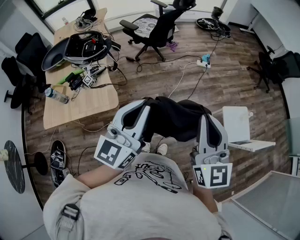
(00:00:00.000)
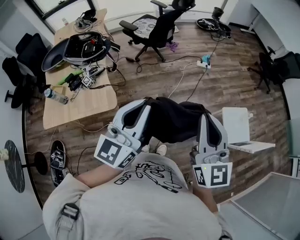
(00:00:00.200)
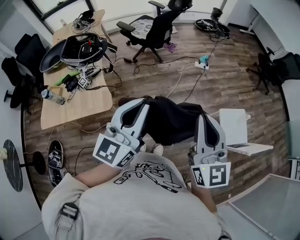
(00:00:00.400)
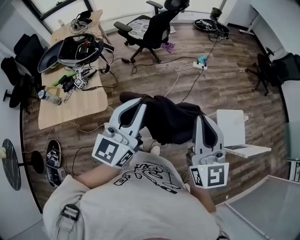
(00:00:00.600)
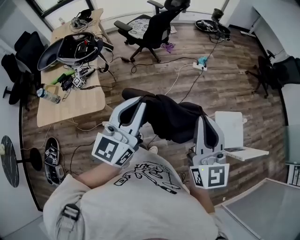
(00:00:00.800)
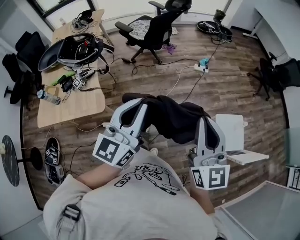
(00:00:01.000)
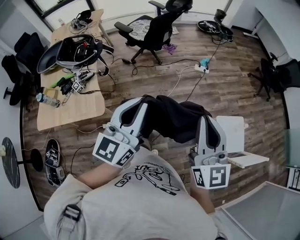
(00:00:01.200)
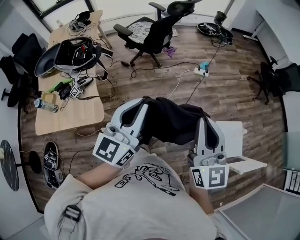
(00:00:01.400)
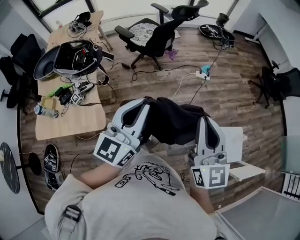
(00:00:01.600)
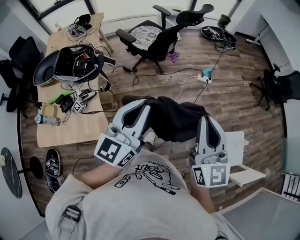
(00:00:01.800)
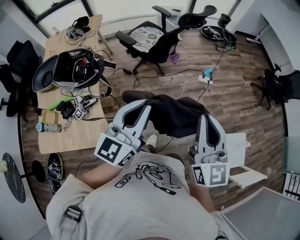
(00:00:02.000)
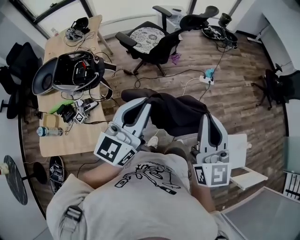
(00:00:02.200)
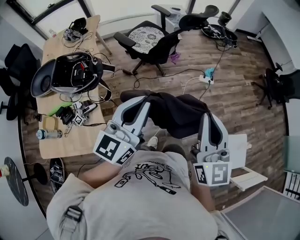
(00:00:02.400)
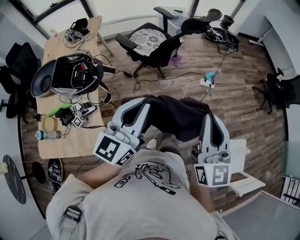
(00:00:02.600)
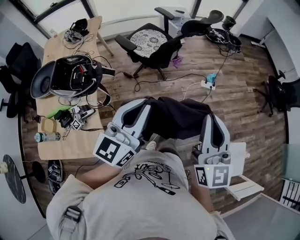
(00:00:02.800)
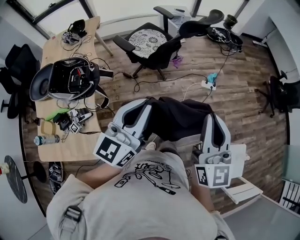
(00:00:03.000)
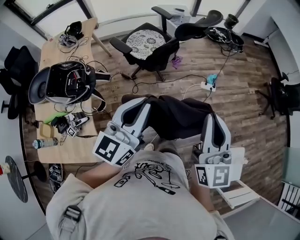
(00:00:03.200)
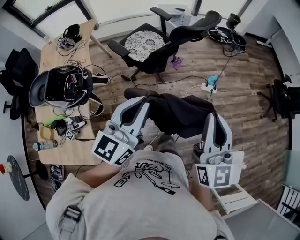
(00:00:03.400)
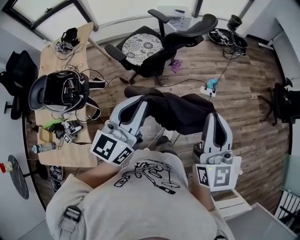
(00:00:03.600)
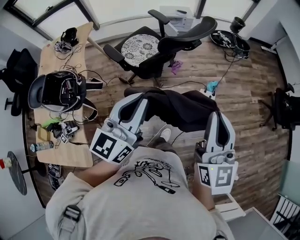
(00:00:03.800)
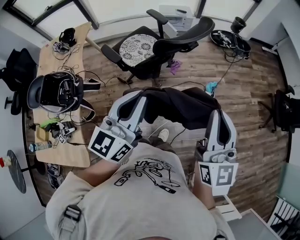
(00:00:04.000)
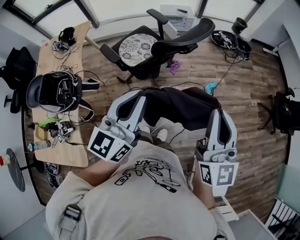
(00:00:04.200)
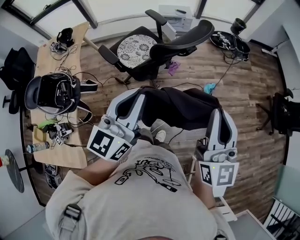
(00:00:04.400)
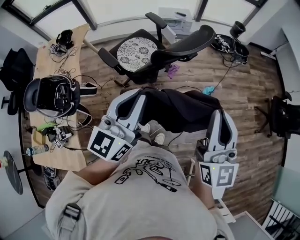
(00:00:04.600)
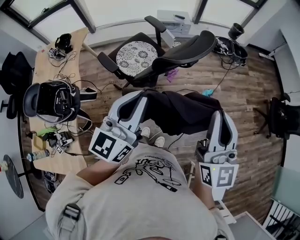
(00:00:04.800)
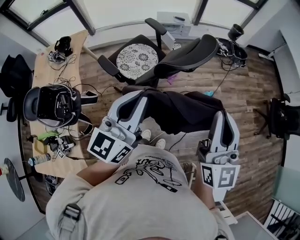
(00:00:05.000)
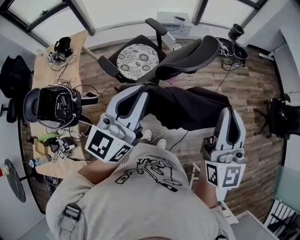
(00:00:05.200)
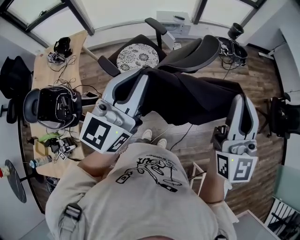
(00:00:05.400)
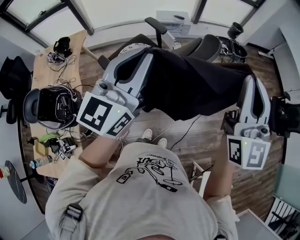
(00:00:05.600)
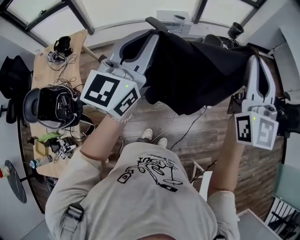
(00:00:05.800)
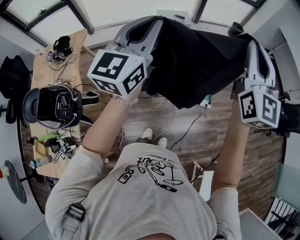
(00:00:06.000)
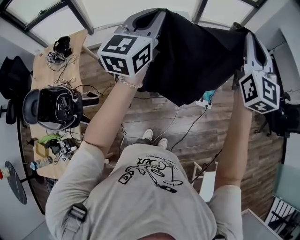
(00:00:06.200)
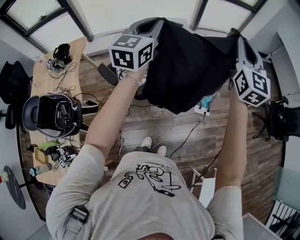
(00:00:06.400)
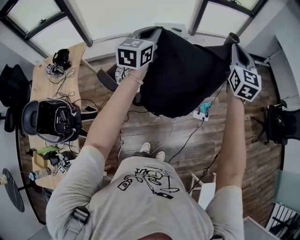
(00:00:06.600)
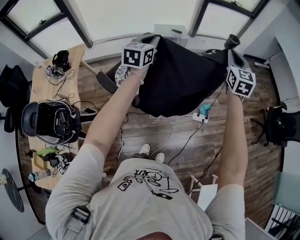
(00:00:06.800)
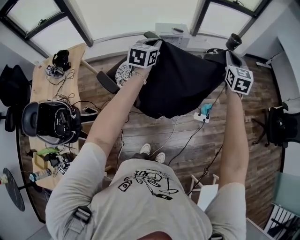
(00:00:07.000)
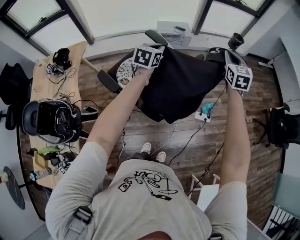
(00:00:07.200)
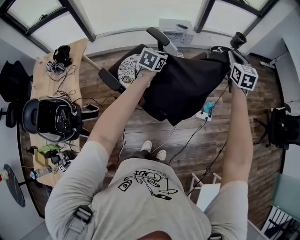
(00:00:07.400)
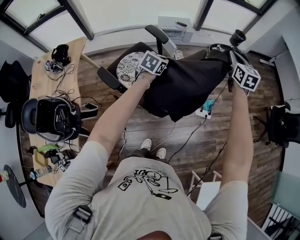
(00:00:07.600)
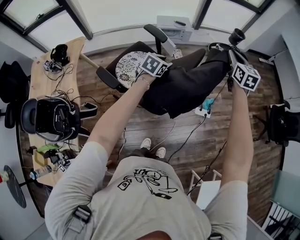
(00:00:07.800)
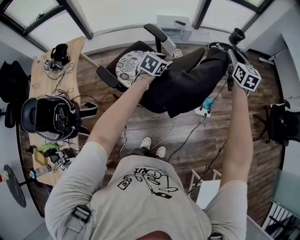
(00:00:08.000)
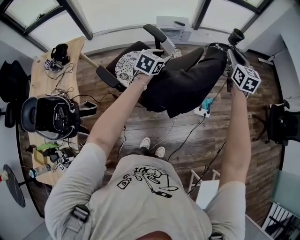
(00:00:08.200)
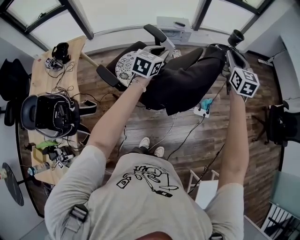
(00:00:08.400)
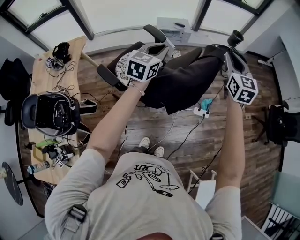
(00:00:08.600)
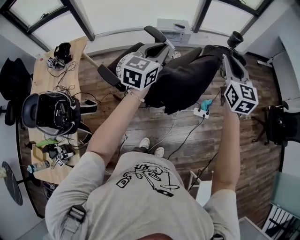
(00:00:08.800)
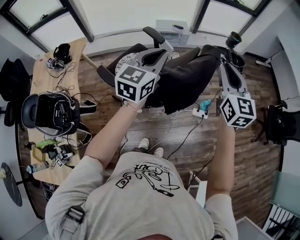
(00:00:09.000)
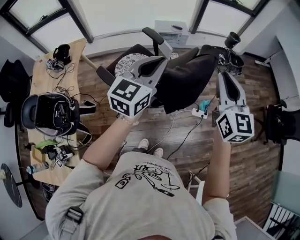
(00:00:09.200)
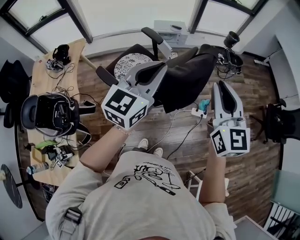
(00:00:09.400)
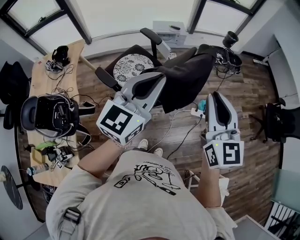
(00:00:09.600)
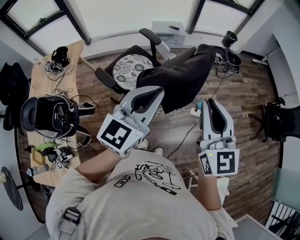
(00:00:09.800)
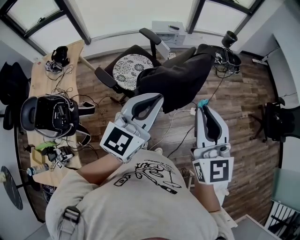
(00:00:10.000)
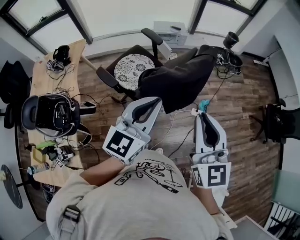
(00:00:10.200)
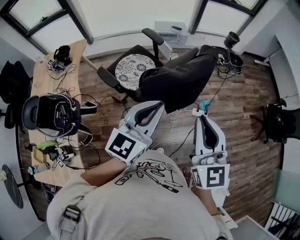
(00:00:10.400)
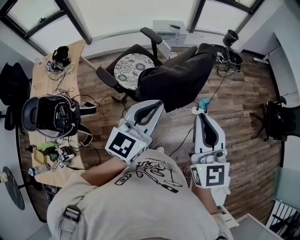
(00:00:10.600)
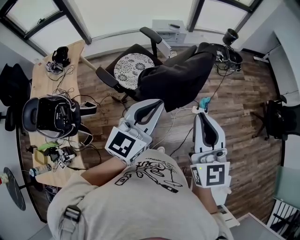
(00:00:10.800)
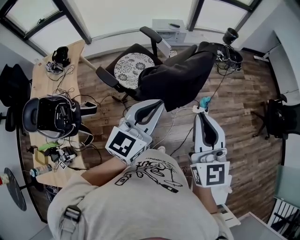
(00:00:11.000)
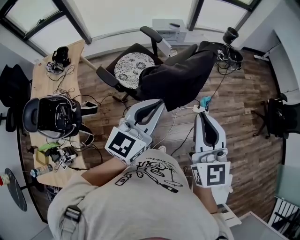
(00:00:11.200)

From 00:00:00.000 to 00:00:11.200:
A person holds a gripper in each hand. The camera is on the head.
From 00:00:00.000 to 00:00:01.600: Both grippers move forward, roughly 20 cm.
From 00:00:01.600 to 00:00:03.200: Both grippers move forward, approximately 30 cm.
From 00:00:03.200 to 00:00:04.800: Both grippers move forward, some 25 cm.
From 00:00:04.800 to 00:00:06.400: The two grippers go about 30 cm forward.
From 00:00:06.400 to 00:00:08.000: The right gripper shifts approximately 25 cm downward and forward, and swivels some 30 degrees; the left gripper moves downward, about 30 cm, points its fingers about 40 degrees further downward, and opens up.
From 00:00:08.000 to 00:00:09.600: The left gripper goes about 40 cm upward and backward, tilts its fingers roughly 40 degrees upward, and closes its fingers; the right gripper is displaced backward by approximately 35 cm.
From 00:00:09.600 to 00:00:11.200: The left gripper moves backward and downward, approximately 10 cm. The right gripper goes roughly 5 cm backward.

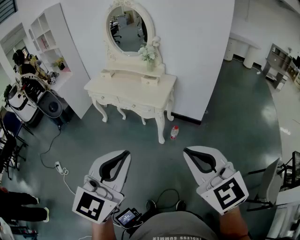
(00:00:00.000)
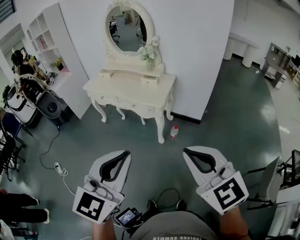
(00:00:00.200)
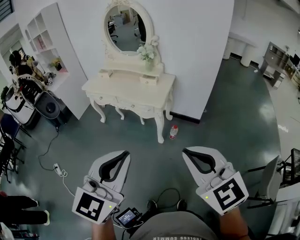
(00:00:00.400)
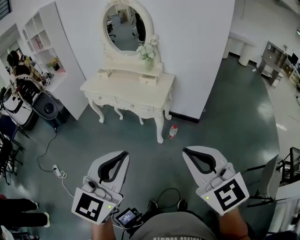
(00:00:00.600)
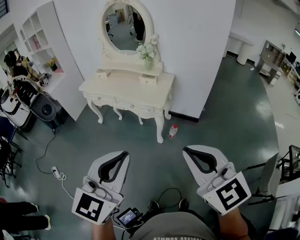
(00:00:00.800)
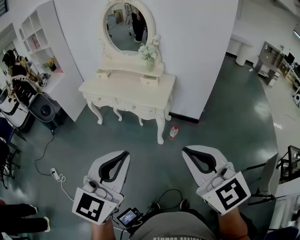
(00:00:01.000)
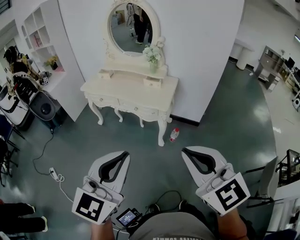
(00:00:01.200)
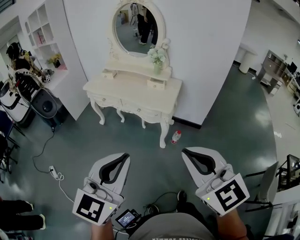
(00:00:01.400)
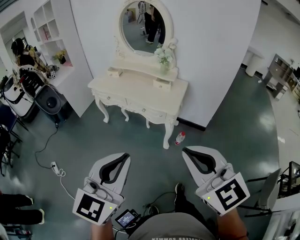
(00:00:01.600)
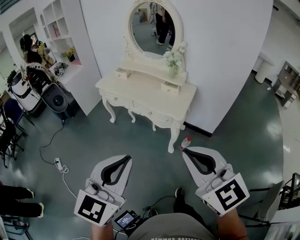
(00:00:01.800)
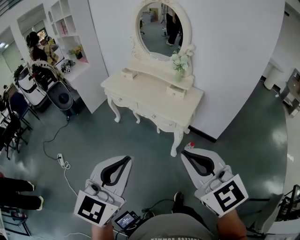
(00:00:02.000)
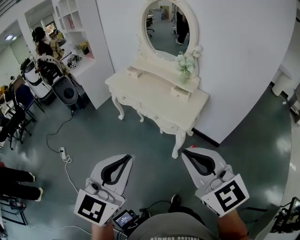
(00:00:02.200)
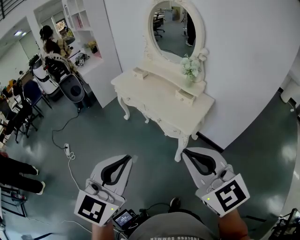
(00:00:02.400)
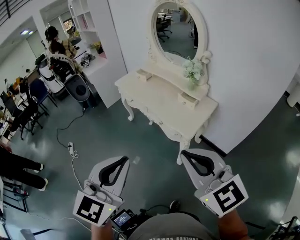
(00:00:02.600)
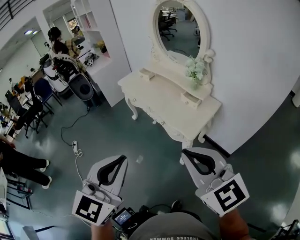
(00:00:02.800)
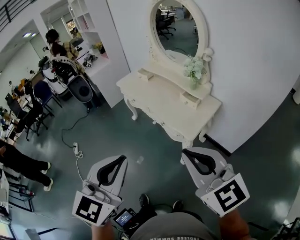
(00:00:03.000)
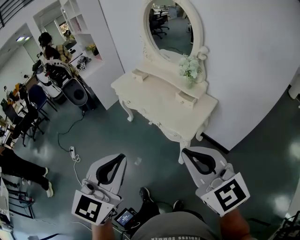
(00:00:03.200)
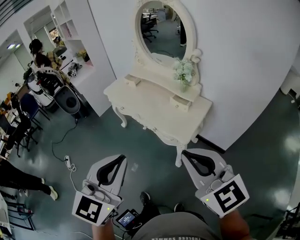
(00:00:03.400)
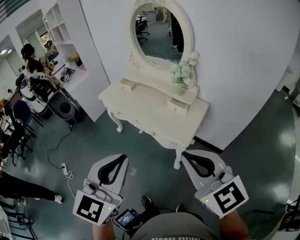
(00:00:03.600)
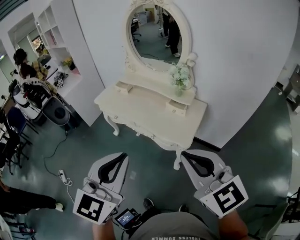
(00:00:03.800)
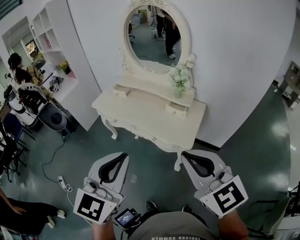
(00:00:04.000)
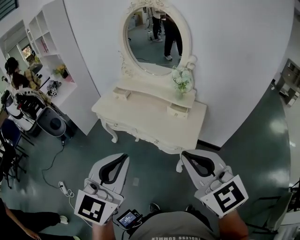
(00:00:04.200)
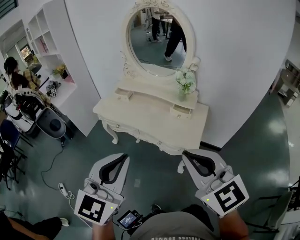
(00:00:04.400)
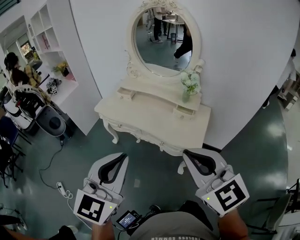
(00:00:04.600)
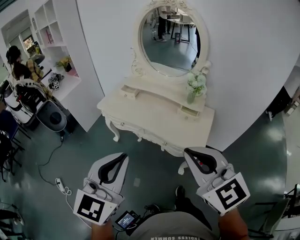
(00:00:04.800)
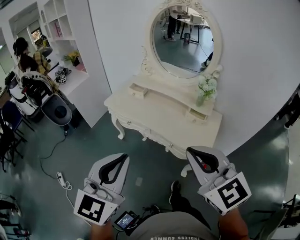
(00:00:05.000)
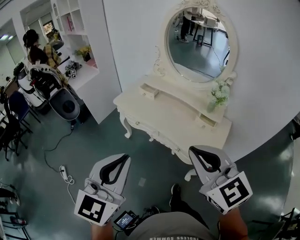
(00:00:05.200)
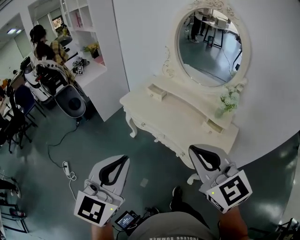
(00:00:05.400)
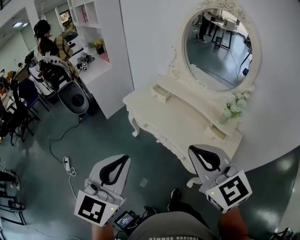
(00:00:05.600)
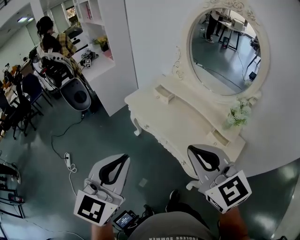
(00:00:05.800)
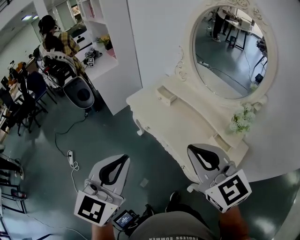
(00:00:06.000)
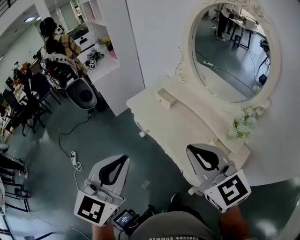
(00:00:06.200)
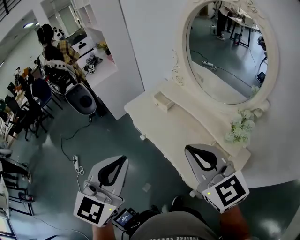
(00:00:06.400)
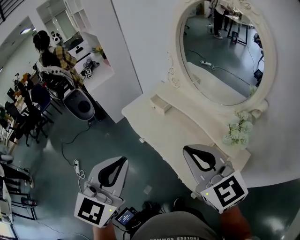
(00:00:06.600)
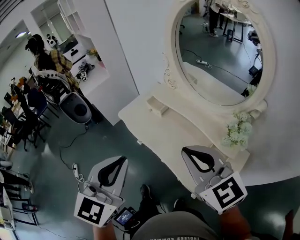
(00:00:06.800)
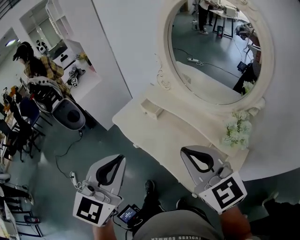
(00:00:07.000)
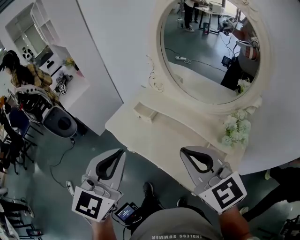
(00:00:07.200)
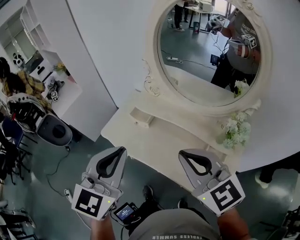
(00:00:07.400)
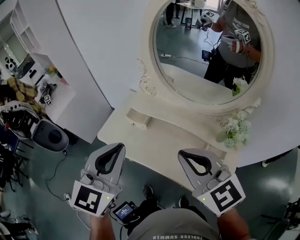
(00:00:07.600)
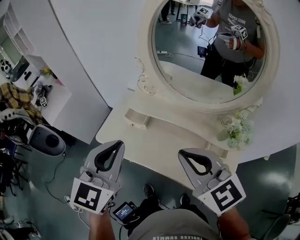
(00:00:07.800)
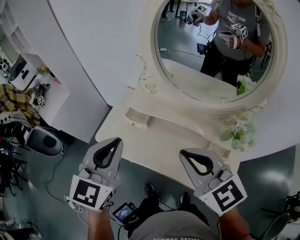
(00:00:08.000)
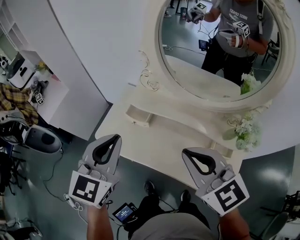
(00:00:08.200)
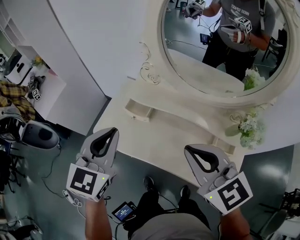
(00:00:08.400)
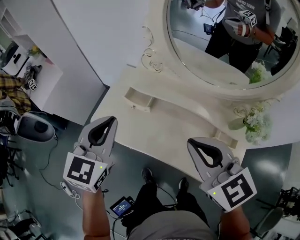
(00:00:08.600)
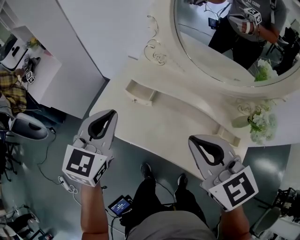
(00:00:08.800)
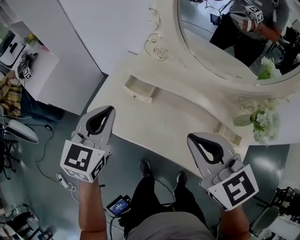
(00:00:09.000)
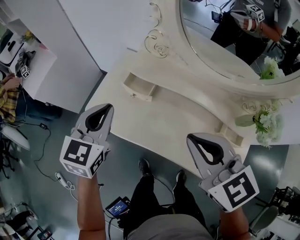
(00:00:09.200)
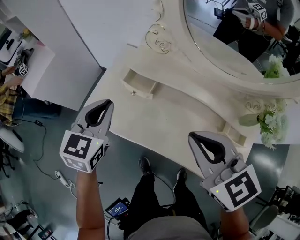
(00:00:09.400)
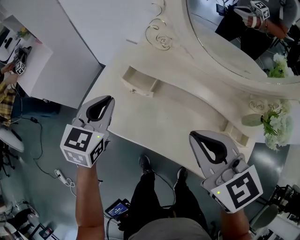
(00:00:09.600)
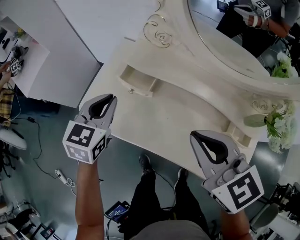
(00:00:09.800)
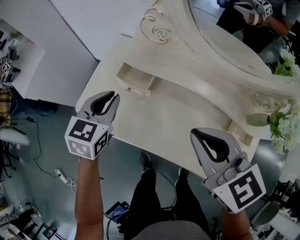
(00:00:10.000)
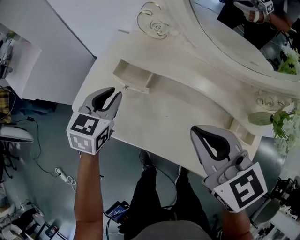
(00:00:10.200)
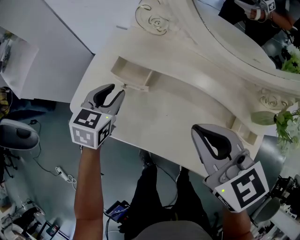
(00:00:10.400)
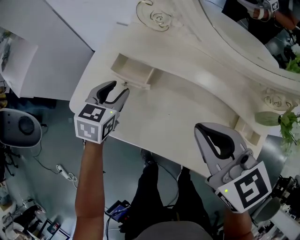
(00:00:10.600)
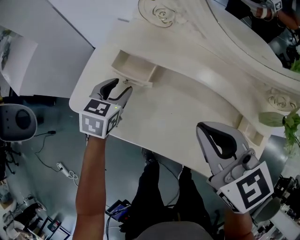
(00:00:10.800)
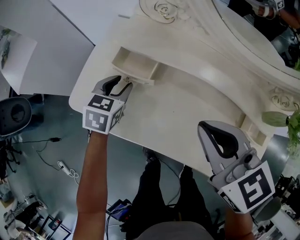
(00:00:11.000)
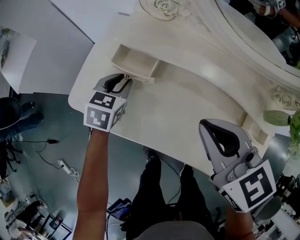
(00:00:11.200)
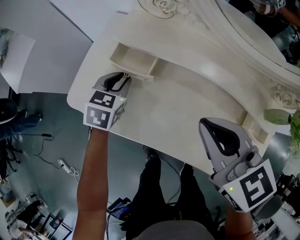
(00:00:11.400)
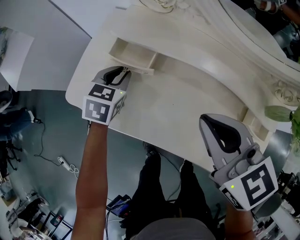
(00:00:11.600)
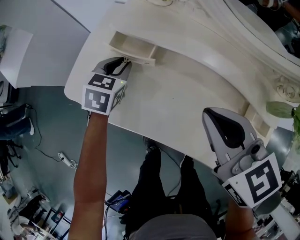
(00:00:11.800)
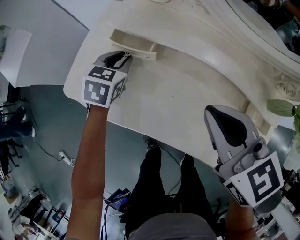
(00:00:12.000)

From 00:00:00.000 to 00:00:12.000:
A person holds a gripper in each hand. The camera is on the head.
From 00:00:00.000 to 00:00:01.600: Both grippers travel together to the left and forward, about 15 cm.
From 00:00:01.600 to 00:00:03.000: The right gripper is displaced forward and to the right by roughly 25 cm, and changes its angle by roughly 20 degrees, while the left gripper shifts about 20 cm to the right and forward, and swivels about 30 degrees.
From 00:00:03.000 to 00:00:04.400: The left gripper moves forward and to the left, approximately 25 cm, and turns by approximately 20 degrees; the right gripper travels to the left and forward by about 20 cm, and turns by some 20 degrees.
From 00:00:04.400 to 00:00:06.000: The left gripper shifts roughly 20 cm forward and to the left, and turns by about 30 degrees, while the right gripper heads forward, covering about 30 cm, and turns by some 20 degrees.
From 00:00:06.000 to 00:00:07.600: Both grippers move forward, about 25 cm. The left gripper swivels approximately 20 degrees.
From 00:00:07.600 to 00:00:09.000: The right gripper moves downward, forward and to the left, approximately 15 cm. The left gripper travels downward, forward and to the left by roughly 25 cm.
From 00:00:09.000 to 00:00:10.400: The right gripper moves downward and forward, about 15 cm; the left gripper heads downward and forward, covering approximately 25 cm, and opens up.
From 00:00:10.400 to 00:00:12.000: The left gripper is displaced downward by approximately 10 cm.
